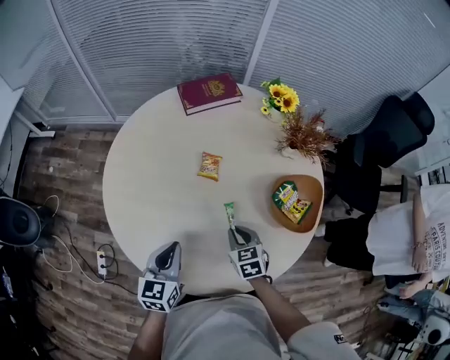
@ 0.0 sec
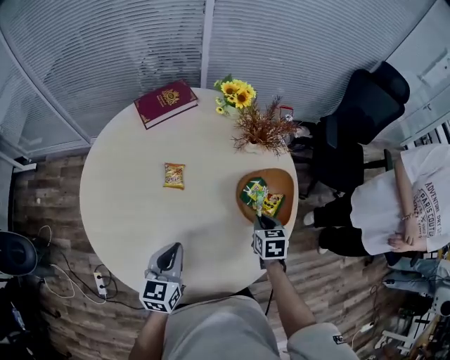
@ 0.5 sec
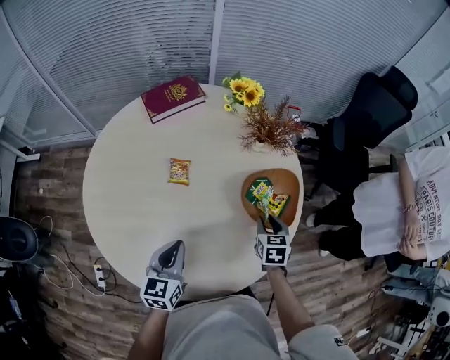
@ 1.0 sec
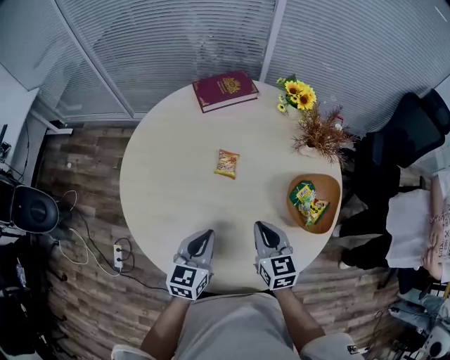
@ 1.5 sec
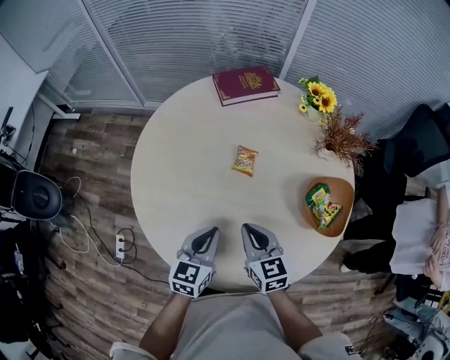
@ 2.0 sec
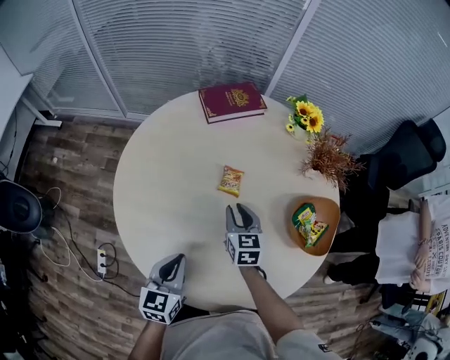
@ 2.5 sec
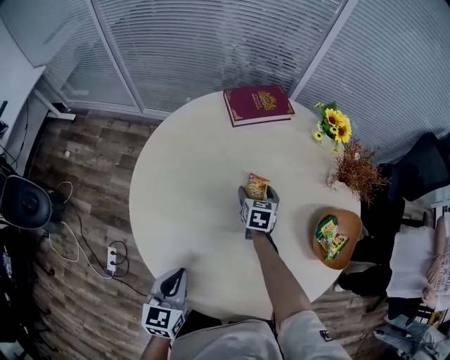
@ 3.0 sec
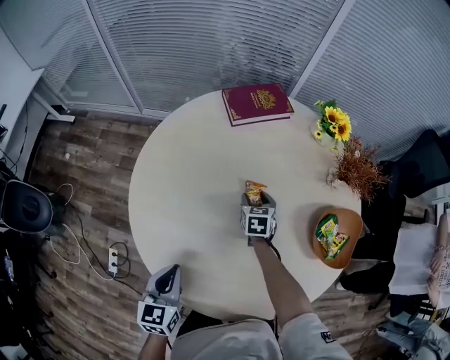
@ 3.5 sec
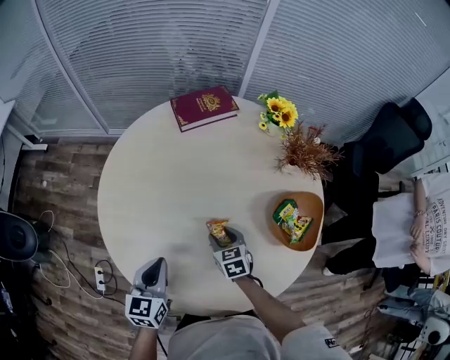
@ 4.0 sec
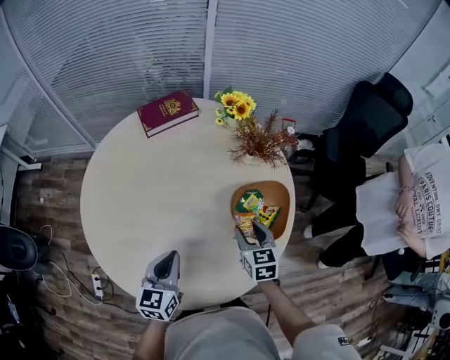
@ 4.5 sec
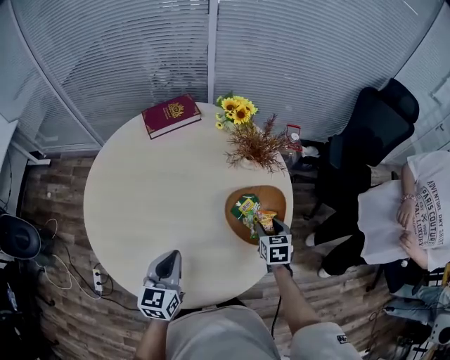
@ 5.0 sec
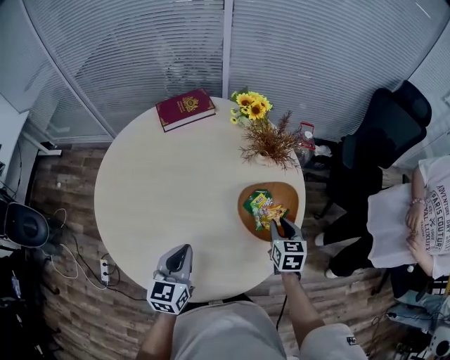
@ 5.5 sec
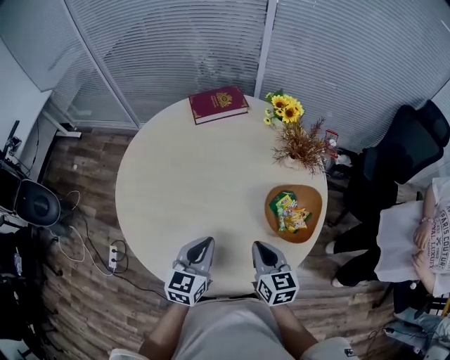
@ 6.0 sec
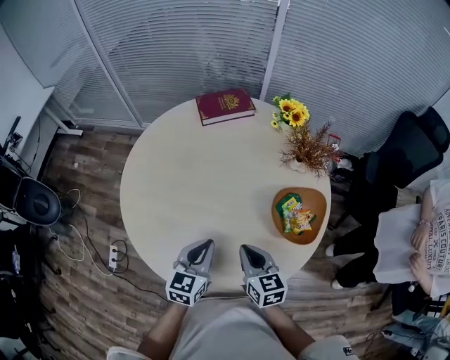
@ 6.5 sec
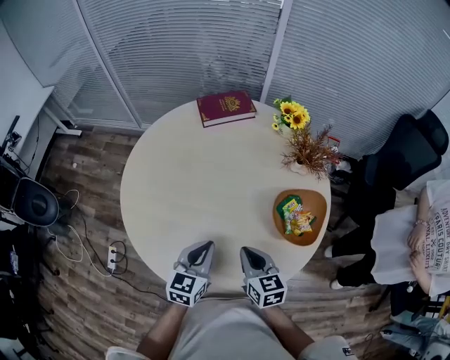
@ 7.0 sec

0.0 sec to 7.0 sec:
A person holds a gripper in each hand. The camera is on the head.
0.0 sec to 2.0 sec: The left gripper goes to the right and returns, roughly 10 cm each way. Meanwhile the right gripper goes about 10 cm upward, and reaches about 20 cm to the right, then returns.
2.0 sec to 3.5 sec: The left gripper moves to the left, about 15 cm. Meanwhile the right gripper heads forward and downward, covering roughly 30 cm, rotates some 30 degrees, and opens its fingers.
3.5 sec to 5.0 sec: The grippers both shift to the right by roughly 30 cm.
5.0 sec to 7.0 sec: The left gripper travels to the left by roughly 5 cm. The right gripper is displaced to the left and backward by some 25 cm, turns by some 30 degrees, and closes its fingers.

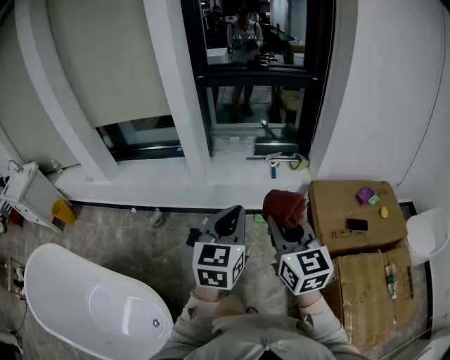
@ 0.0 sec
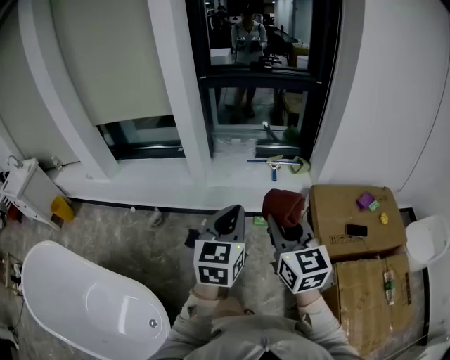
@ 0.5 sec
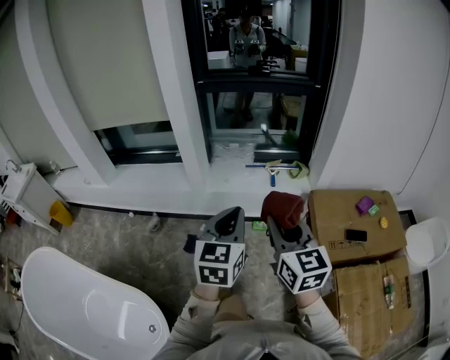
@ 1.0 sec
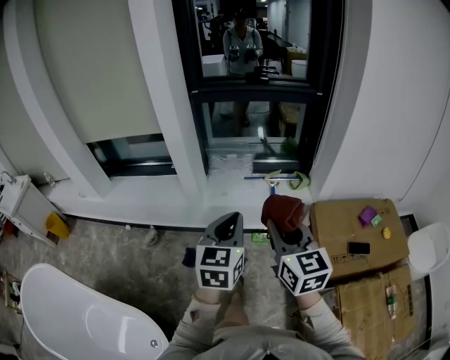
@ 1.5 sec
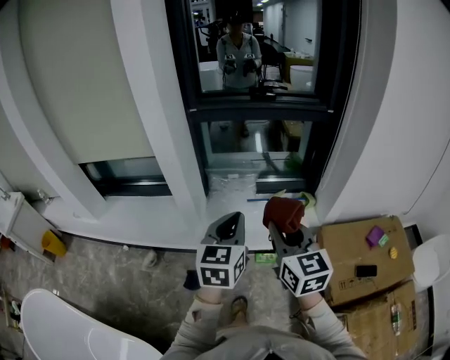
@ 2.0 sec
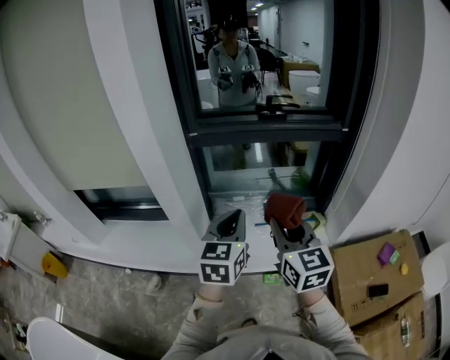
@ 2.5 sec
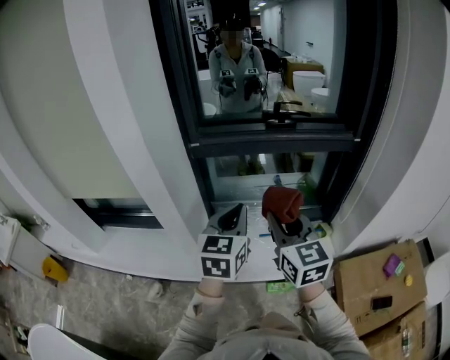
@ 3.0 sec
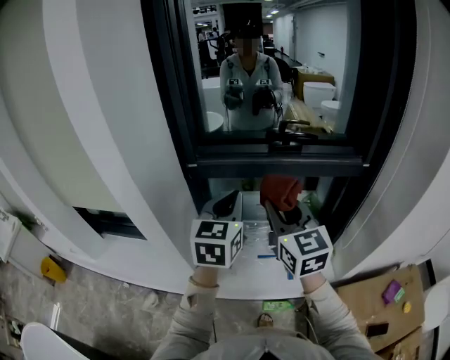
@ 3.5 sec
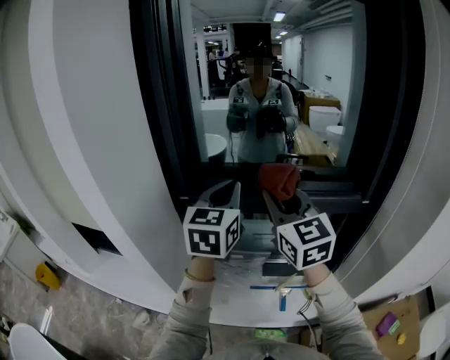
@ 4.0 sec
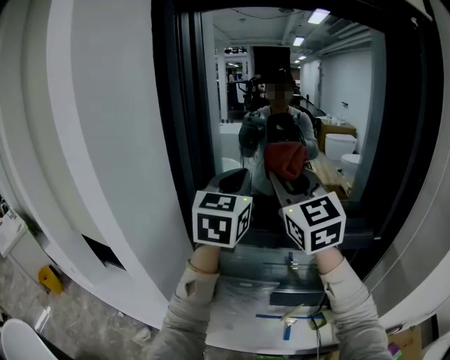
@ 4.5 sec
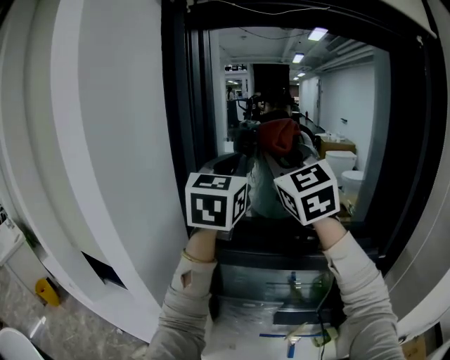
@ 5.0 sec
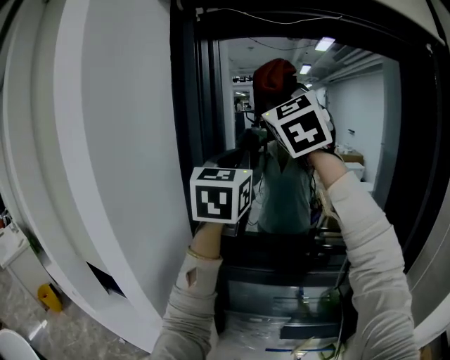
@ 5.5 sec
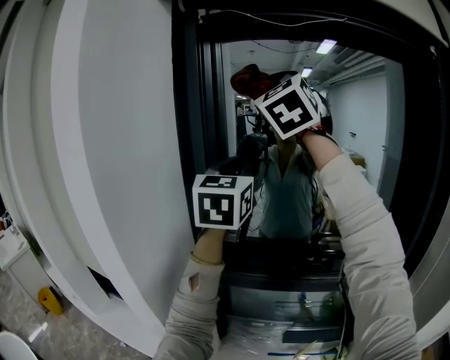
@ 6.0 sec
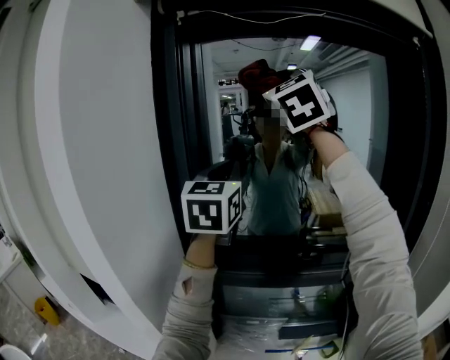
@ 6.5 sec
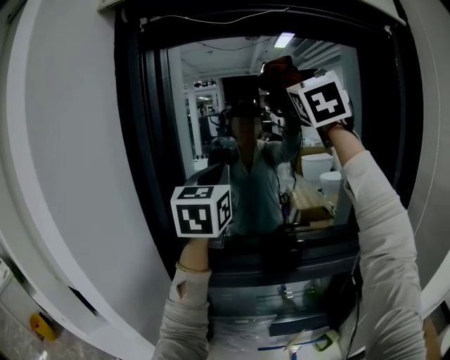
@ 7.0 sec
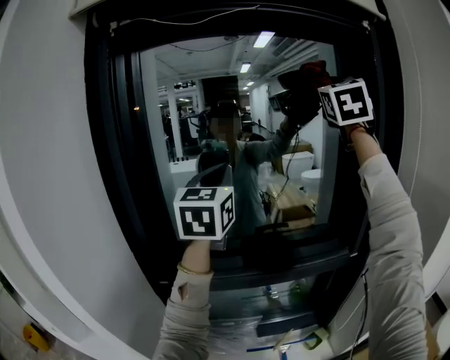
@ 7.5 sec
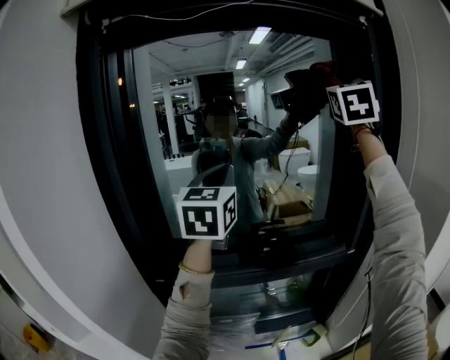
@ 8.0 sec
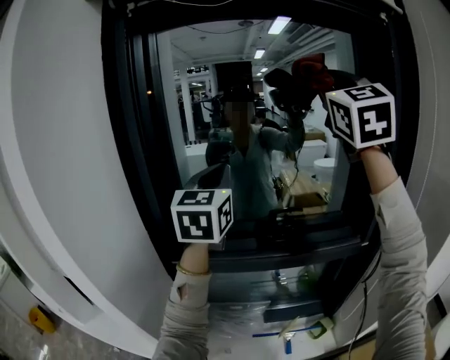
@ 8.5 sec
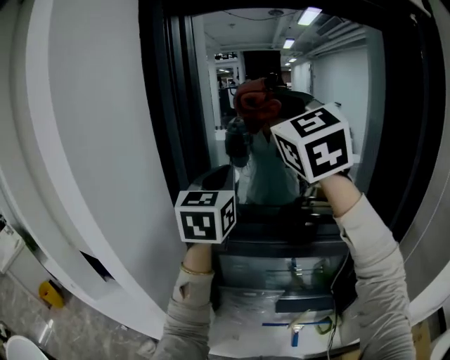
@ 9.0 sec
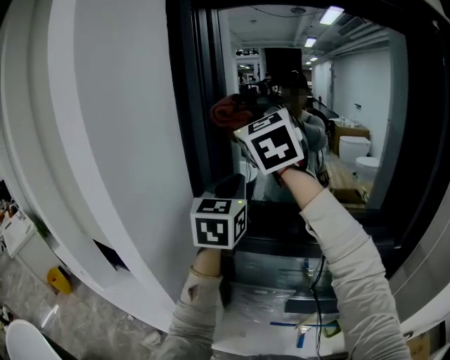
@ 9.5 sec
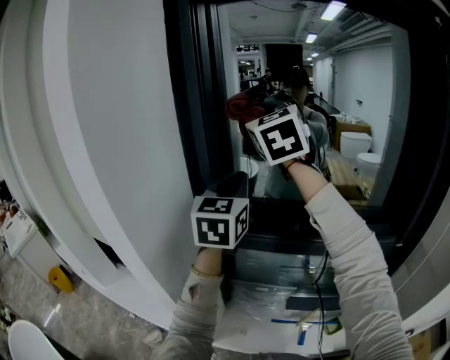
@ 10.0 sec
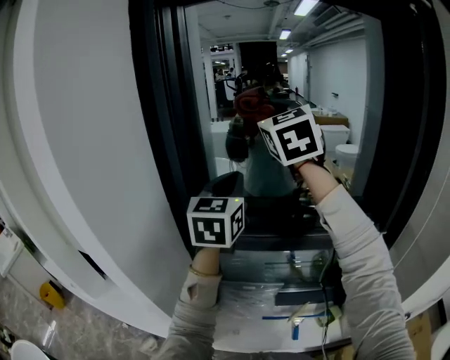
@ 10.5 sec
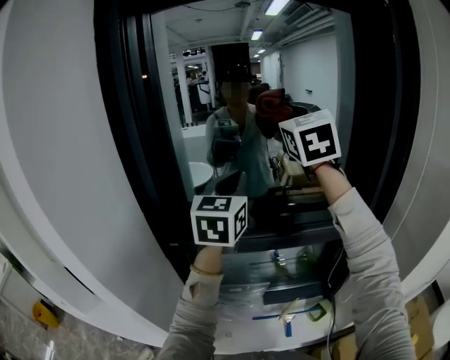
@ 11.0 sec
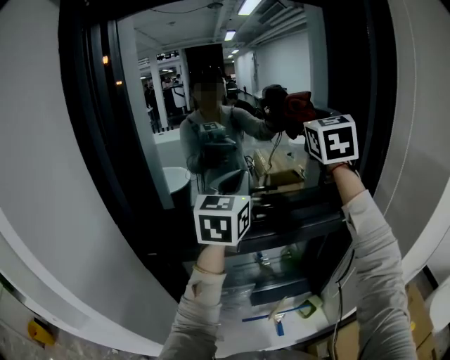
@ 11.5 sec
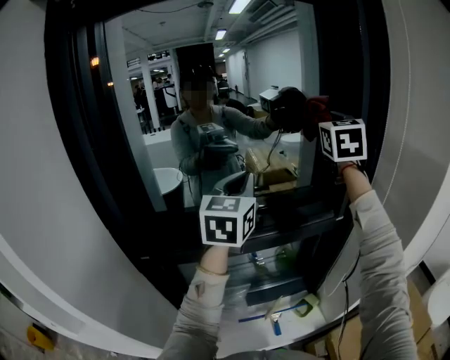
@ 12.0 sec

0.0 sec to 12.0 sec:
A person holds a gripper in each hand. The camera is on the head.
0.0 sec to 2.0 sec: The two grippers go roughly 30 cm forward.
2.0 sec to 4.0 sec: Both grippers are carried forward, approximately 40 cm. The two grippers go about 20 cm upward.
4.0 sec to 6.0 sec: The right gripper goes about 40 cm upward and forward, and changes its angle by approximately 40 degrees. The left gripper shifts about 25 cm upward and forward.
6.0 sec to 8.0 sec: The right gripper is displaced to the right by about 40 cm, and rotates roughly 30 degrees, while the left gripper is displaced to the right by about 15 cm.
8.0 sec to 10.0 sec: The right gripper ends up some 40 cm from where it was, and turns by approximately 40 degrees, while the left gripper moves approximately 20 cm.
10.0 sec to 12.0 sec: The left gripper changes place by approximately 25 cm, and turns by some 30 degrees. Meanwhile the right gripper ends up about 40 cm from where it was, and changes its angle by about 40 degrees.

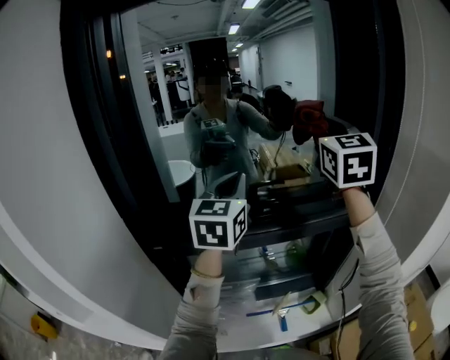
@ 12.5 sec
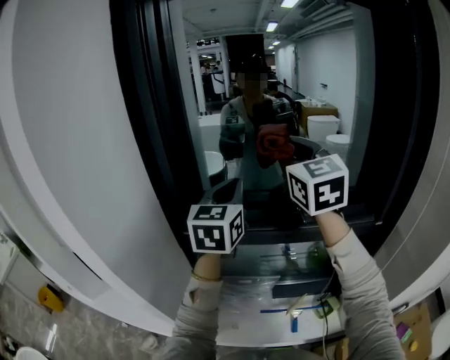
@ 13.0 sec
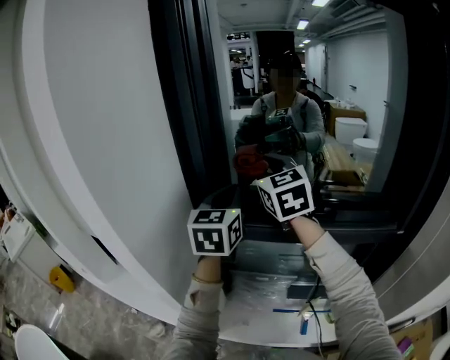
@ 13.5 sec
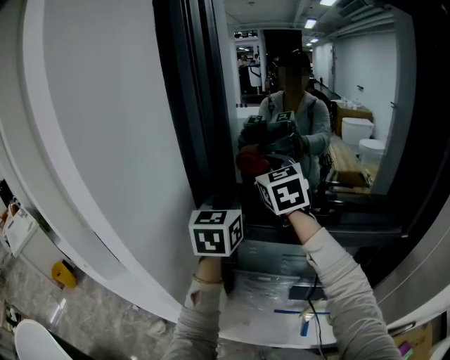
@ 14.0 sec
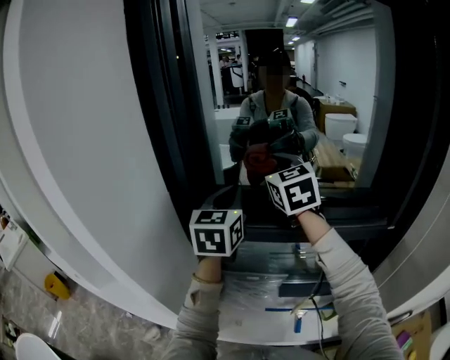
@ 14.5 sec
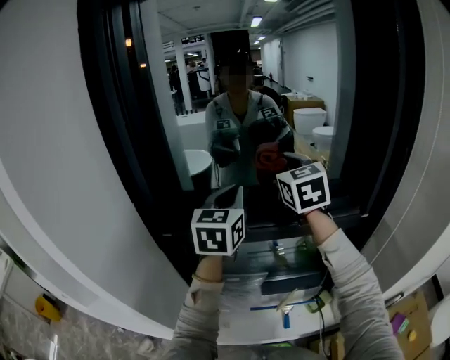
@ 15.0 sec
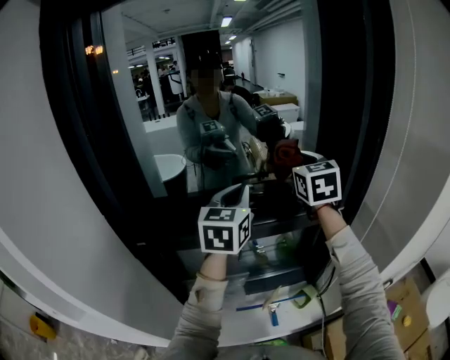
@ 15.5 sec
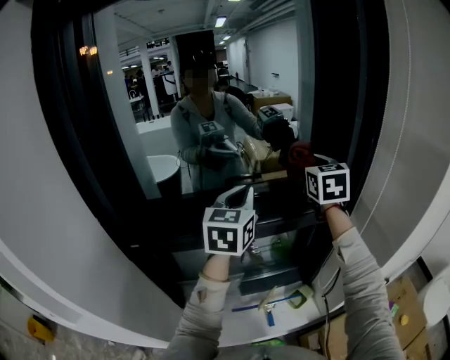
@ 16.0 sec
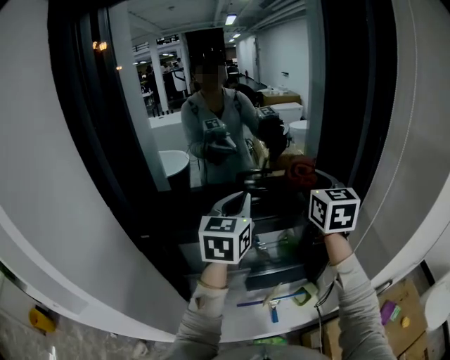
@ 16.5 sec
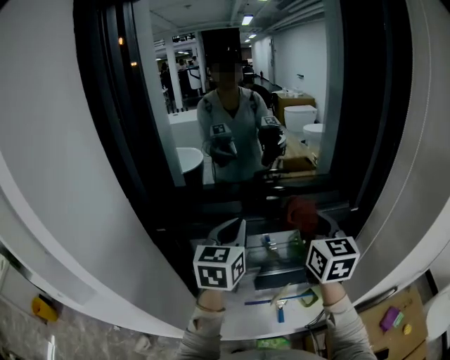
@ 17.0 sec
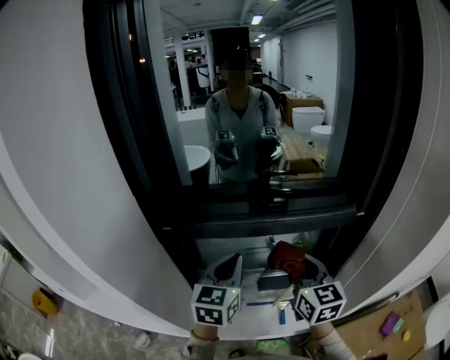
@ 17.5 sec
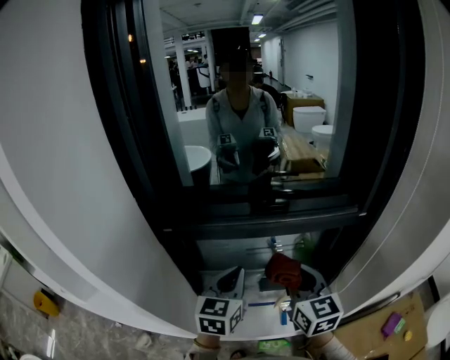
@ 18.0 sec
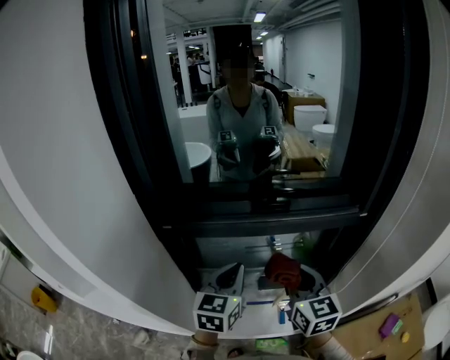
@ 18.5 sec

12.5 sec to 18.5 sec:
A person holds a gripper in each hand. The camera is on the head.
12.5 sec to 14.5 sec: The left gripper changes place by roughly 15 cm; the right gripper changes place by roughly 30 cm, and changes its angle by some 30 degrees.
14.5 sec to 16.5 sec: The left gripper changes place by some 20 cm. The right gripper changes place by some 30 cm, and rotates about 30 degrees.
16.5 sec to 18.5 sec: The two grippers go roughly 25 cm downward, backward and to the left.

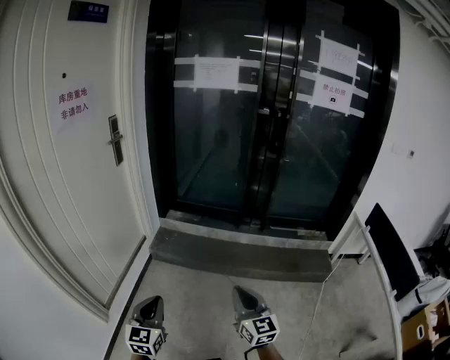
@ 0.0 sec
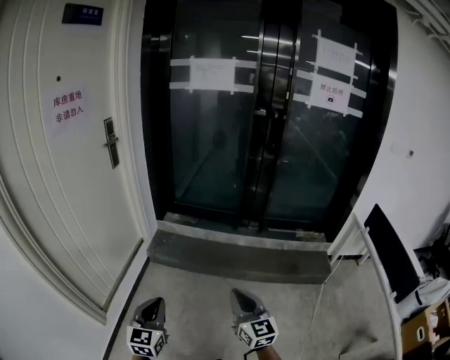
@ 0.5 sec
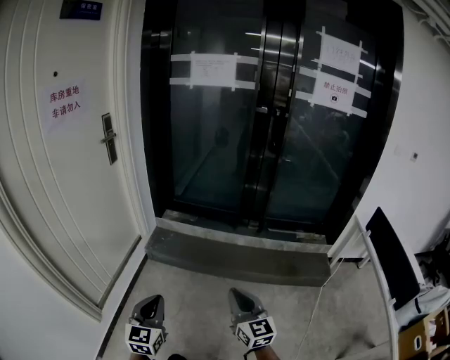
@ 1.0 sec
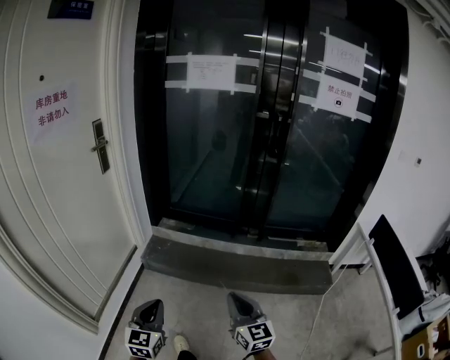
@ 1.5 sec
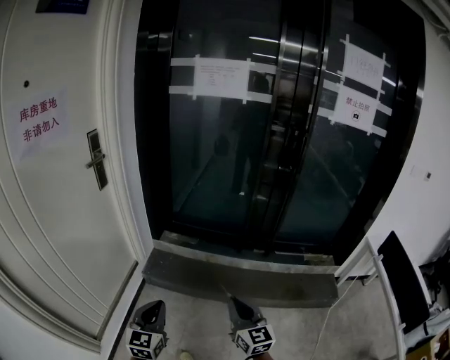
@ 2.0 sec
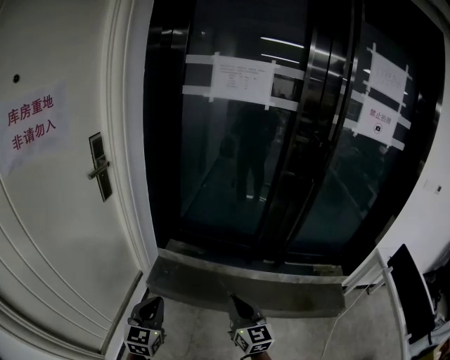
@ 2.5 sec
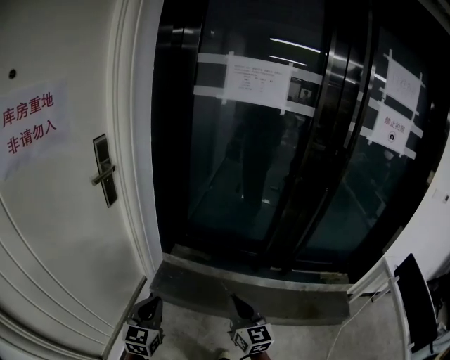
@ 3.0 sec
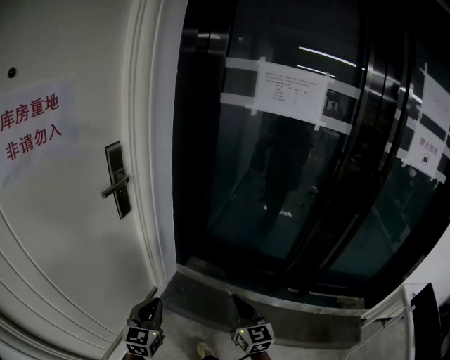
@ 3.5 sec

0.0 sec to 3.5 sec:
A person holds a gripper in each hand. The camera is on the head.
0.0 sec to 2.0 sec: Both grippers move forward, roughly 25 cm.
2.0 sec to 3.5 sec: Both grippers move forward and to the left, approximately 30 cm.
